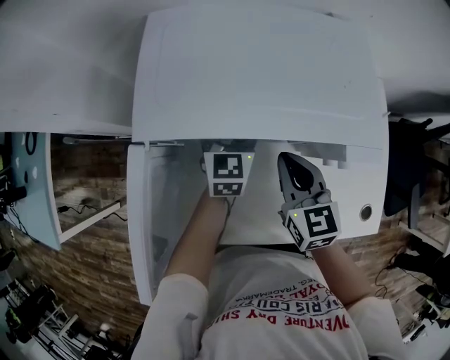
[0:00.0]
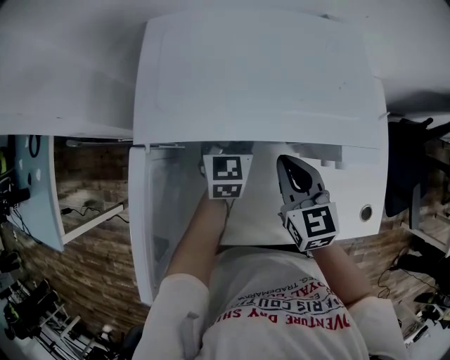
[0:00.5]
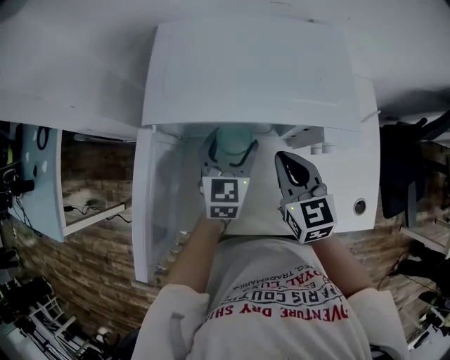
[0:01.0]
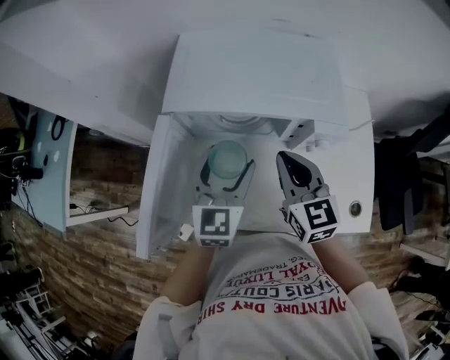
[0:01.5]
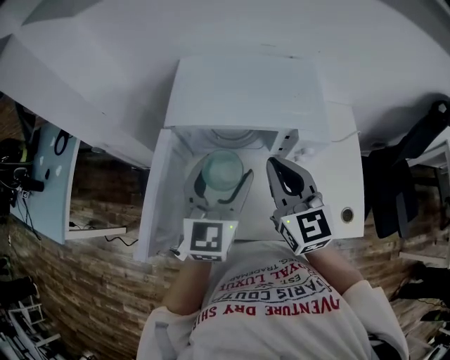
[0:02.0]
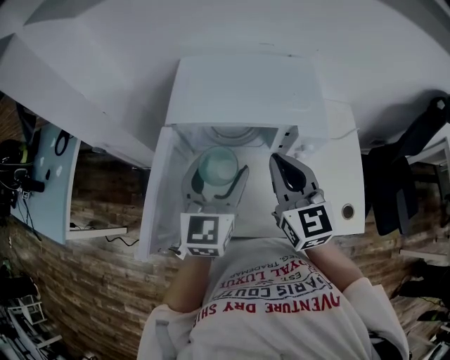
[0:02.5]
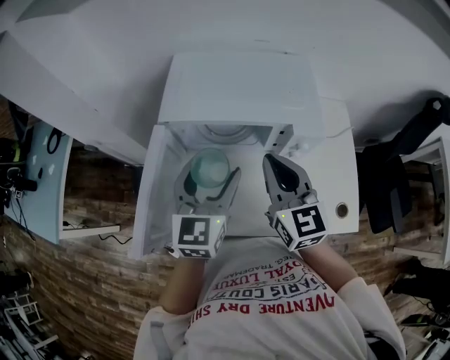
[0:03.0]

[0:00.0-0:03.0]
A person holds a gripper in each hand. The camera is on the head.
0:00.0 to 0:01.5: The right gripper travels upward and backward by about 10 cm. The left gripper shifts approximately 20 cm backward and upward.
0:01.5 to 0:03.0: The two grippers go about 5 cm upward.

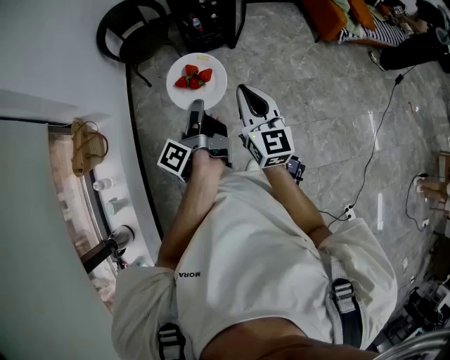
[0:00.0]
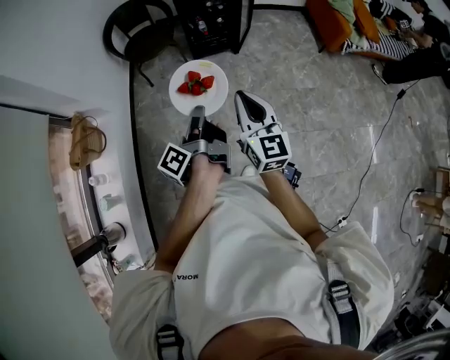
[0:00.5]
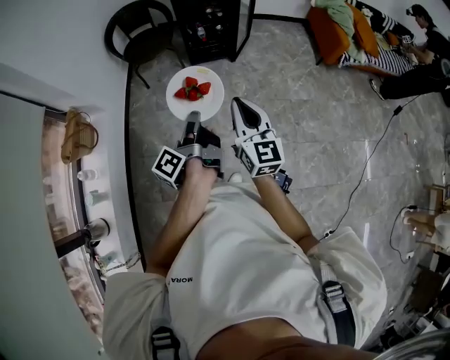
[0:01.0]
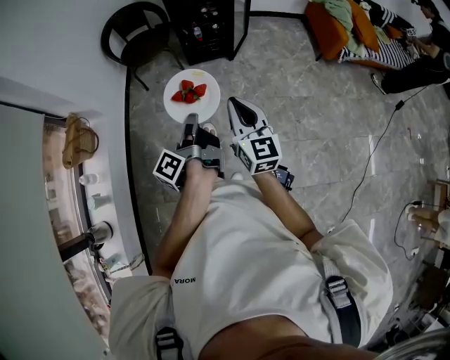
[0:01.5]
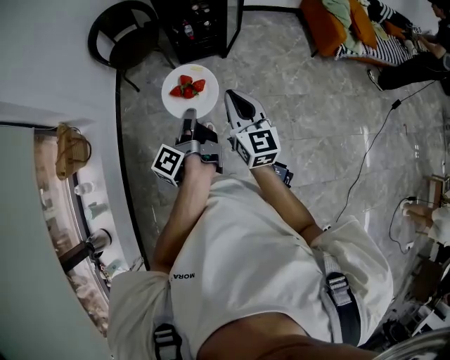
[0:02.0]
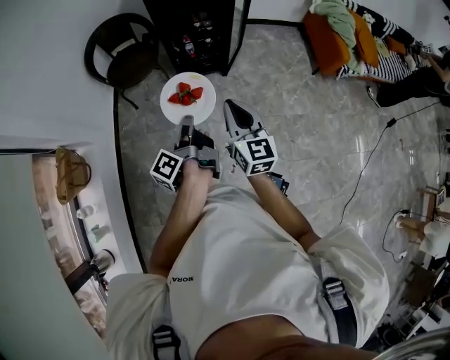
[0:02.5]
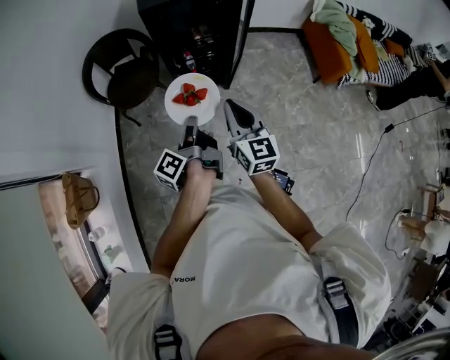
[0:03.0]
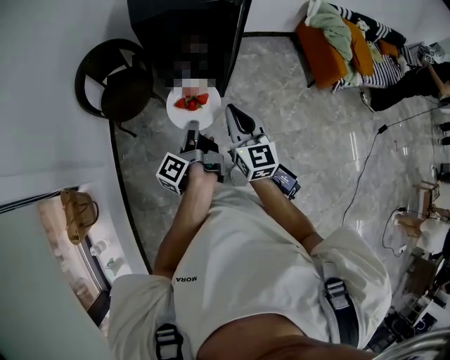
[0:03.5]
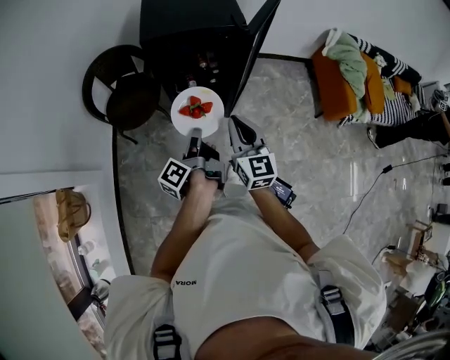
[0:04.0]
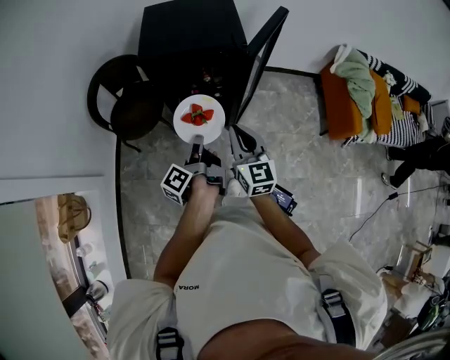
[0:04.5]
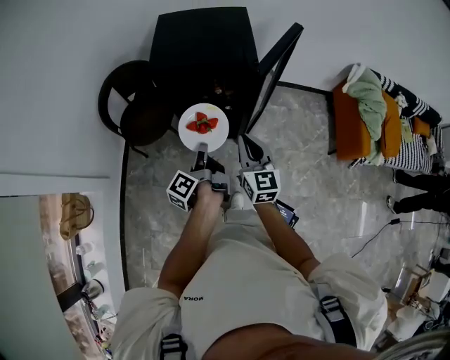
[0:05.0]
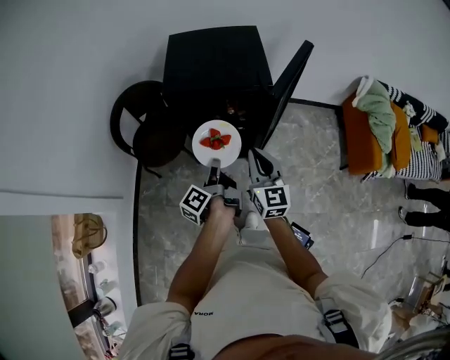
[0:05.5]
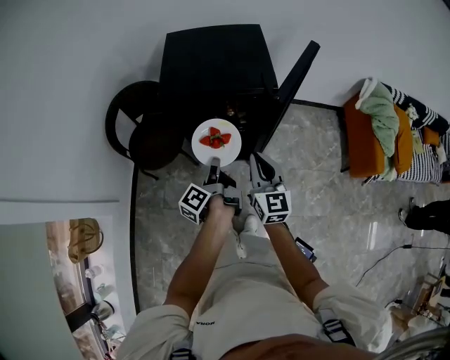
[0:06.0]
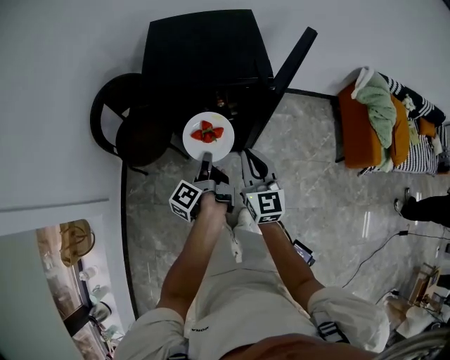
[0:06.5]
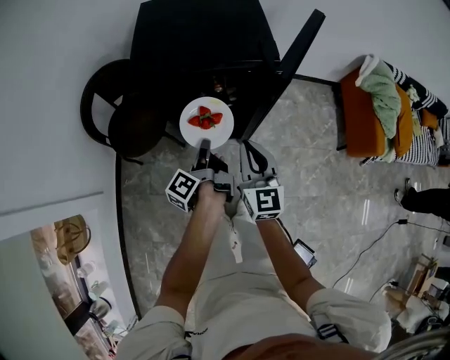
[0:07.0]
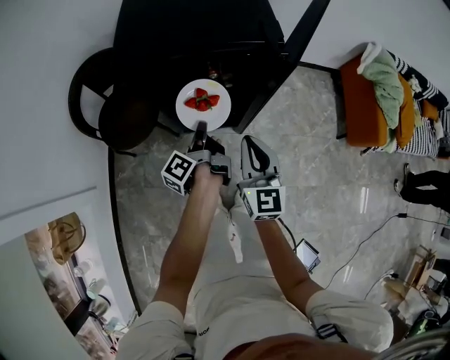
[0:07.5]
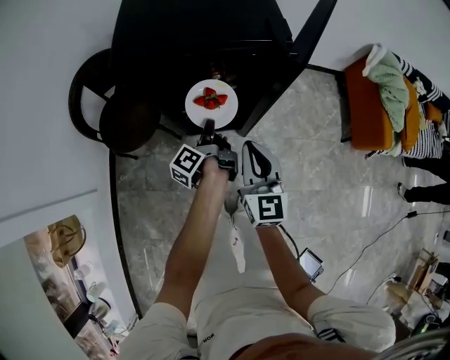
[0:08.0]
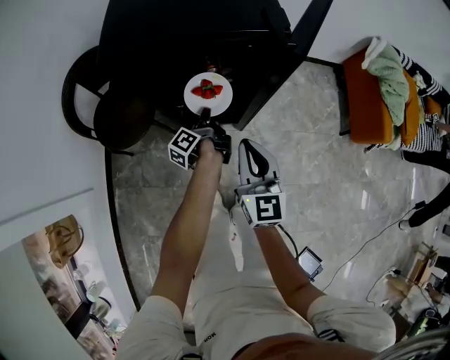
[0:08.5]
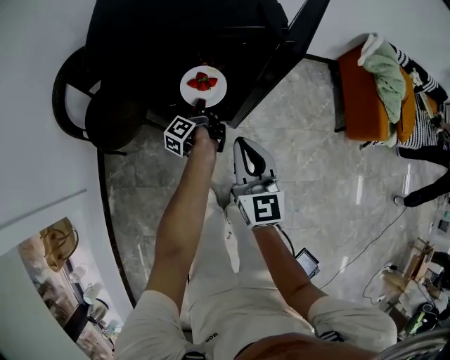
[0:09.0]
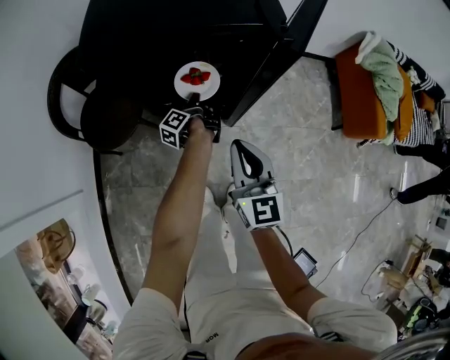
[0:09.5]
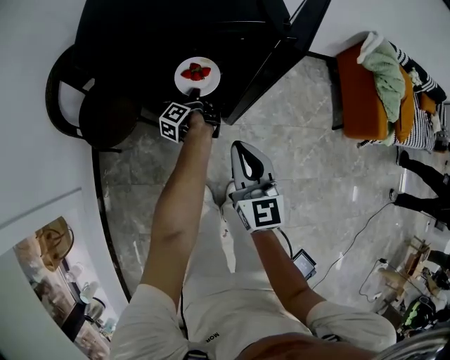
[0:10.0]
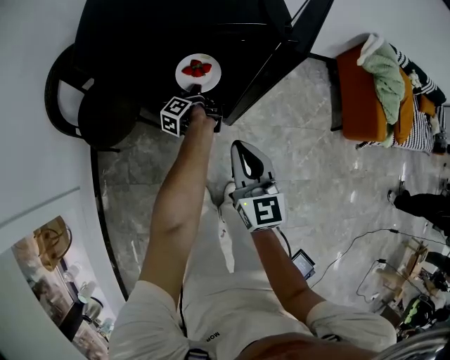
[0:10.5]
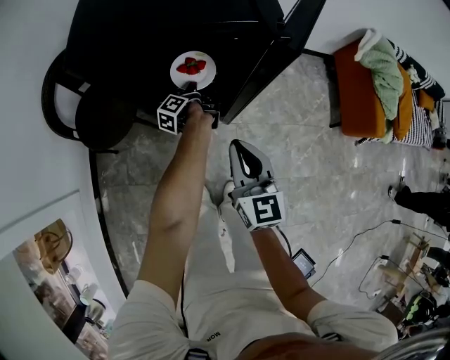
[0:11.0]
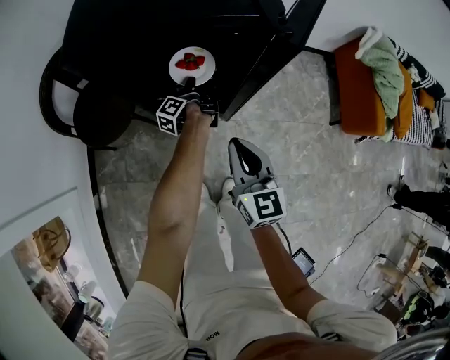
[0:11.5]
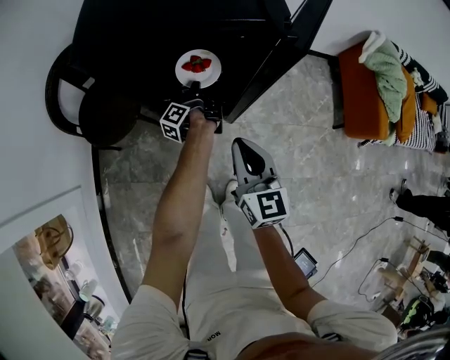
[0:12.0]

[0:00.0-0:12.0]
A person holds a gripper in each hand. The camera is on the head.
0:00.0 to 0:02.0: The right gripper changes place by roughly 15 cm.
0:02.0 to 0:04.0: The right gripper ends up approximately 40 cm from where it was.
0:04.0 to 0:06.0: The right gripper changes place by approximately 15 cm.
0:06.0 to 0:08.0: The right gripper is displaced downward by approximately 10 cm.

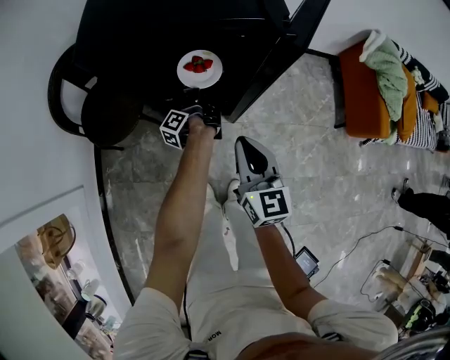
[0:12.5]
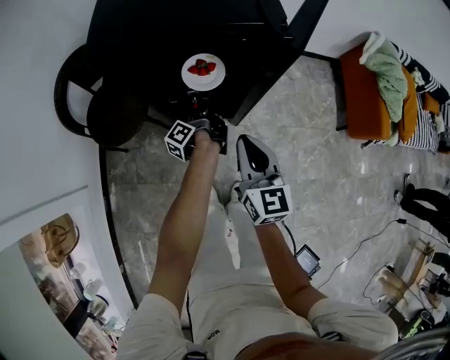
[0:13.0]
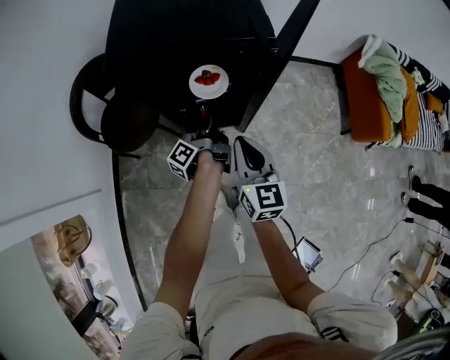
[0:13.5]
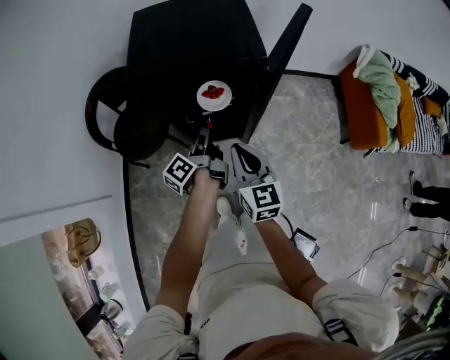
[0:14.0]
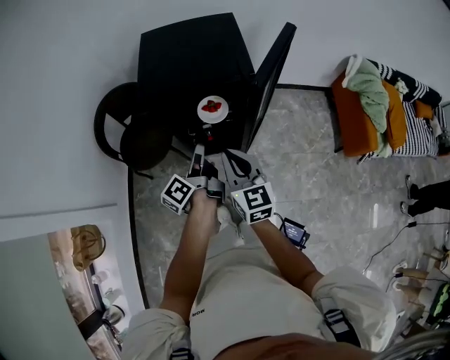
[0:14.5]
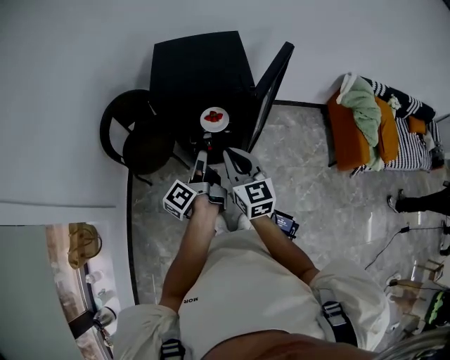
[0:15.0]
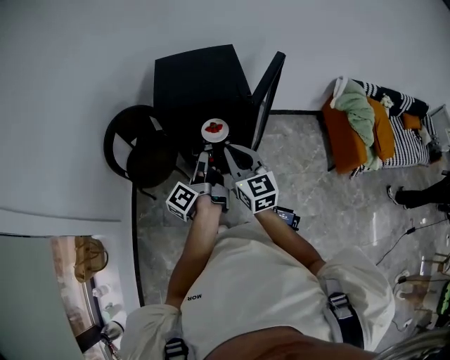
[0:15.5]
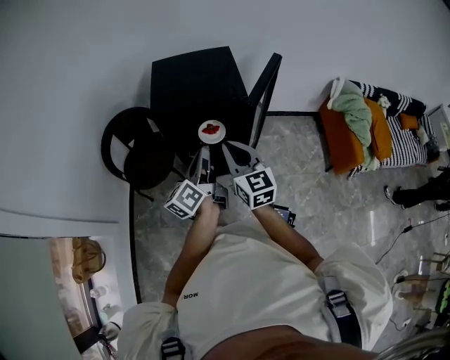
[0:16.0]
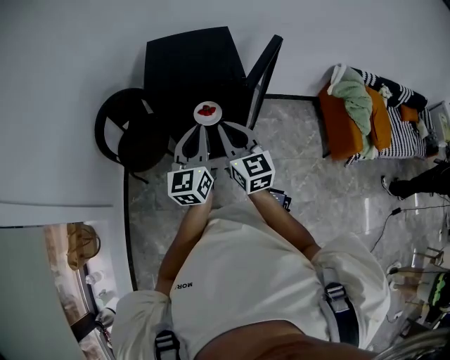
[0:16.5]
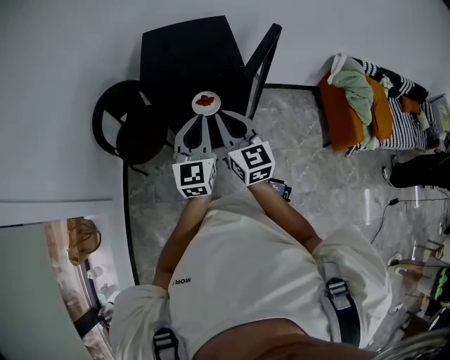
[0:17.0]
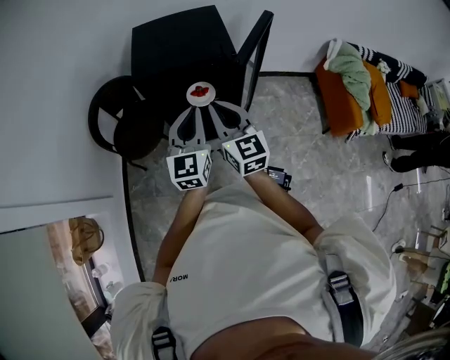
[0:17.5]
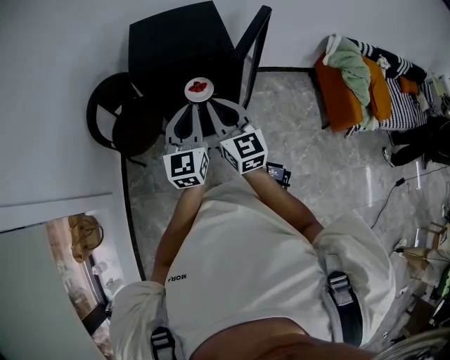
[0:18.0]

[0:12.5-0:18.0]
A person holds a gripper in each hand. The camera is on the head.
0:12.5 to 0:14.5: The right gripper goes roughly 15 cm upward.
0:14.5 to 0:16.0: The right gripper shifts some 10 cm upward.

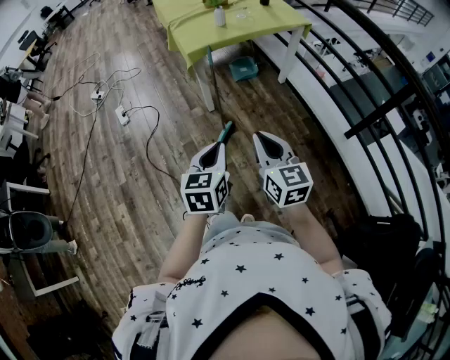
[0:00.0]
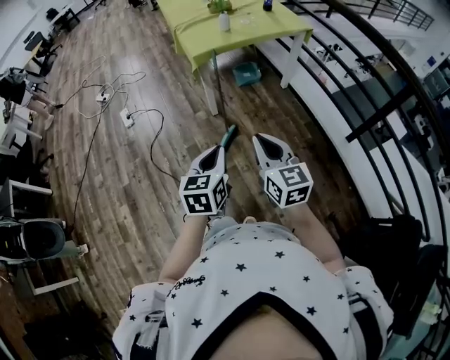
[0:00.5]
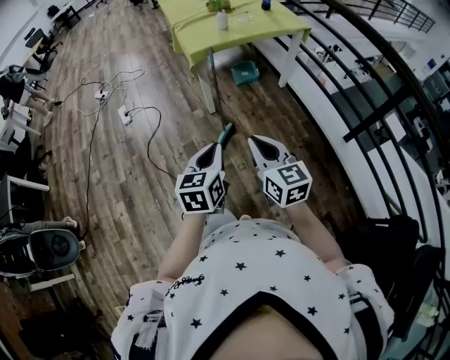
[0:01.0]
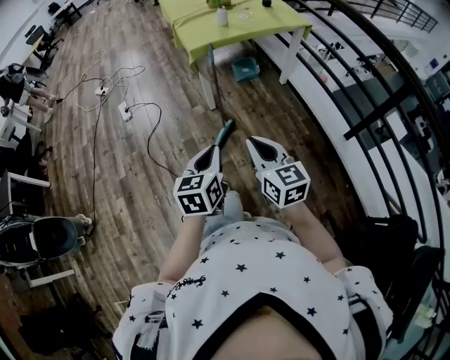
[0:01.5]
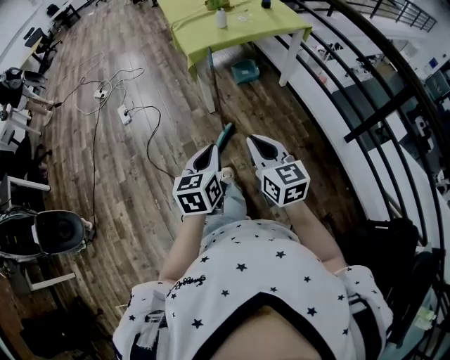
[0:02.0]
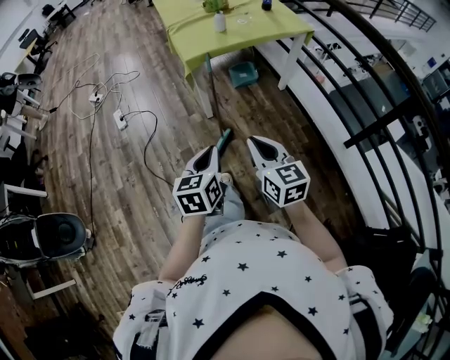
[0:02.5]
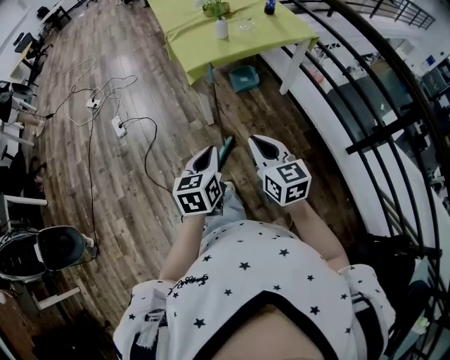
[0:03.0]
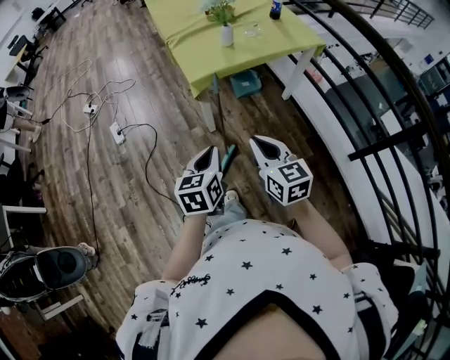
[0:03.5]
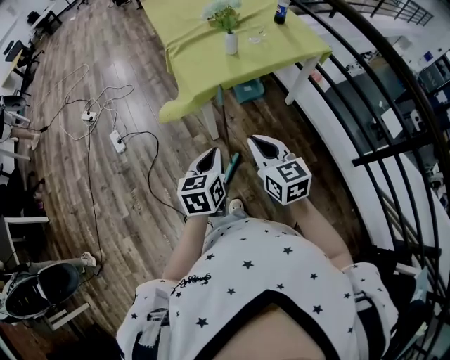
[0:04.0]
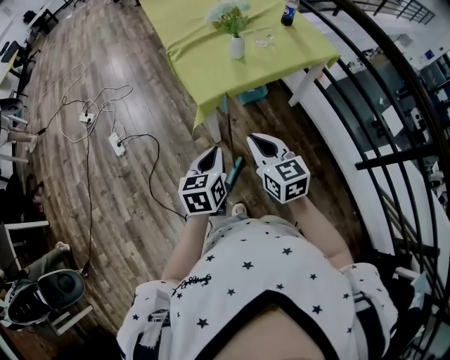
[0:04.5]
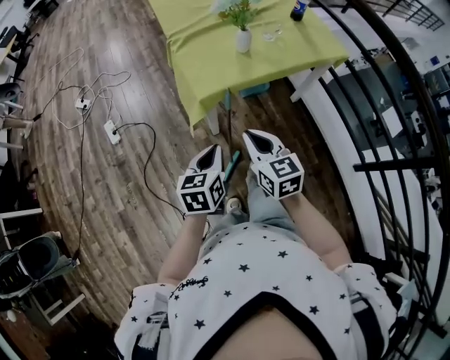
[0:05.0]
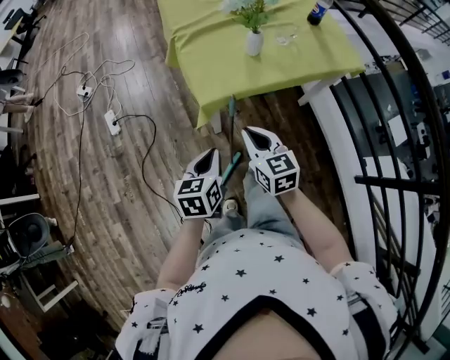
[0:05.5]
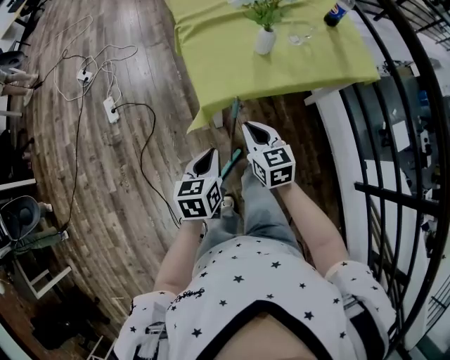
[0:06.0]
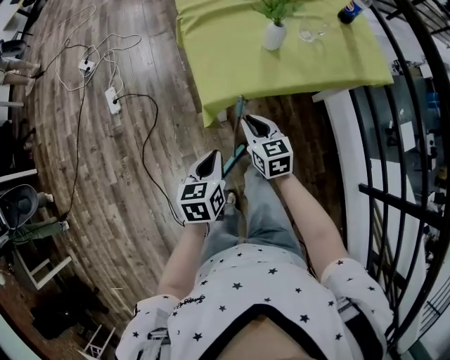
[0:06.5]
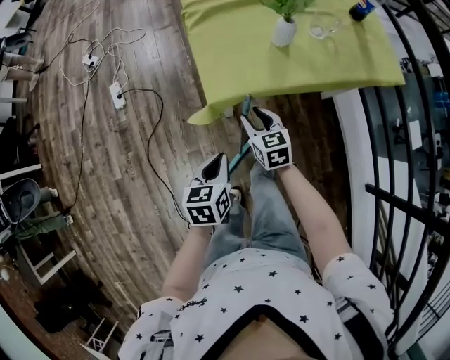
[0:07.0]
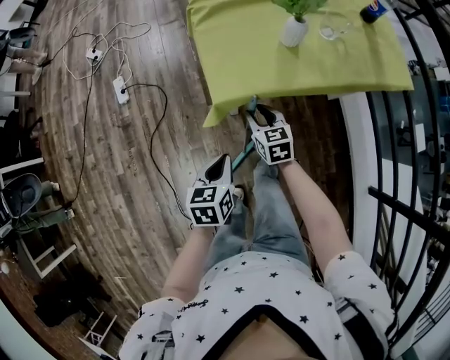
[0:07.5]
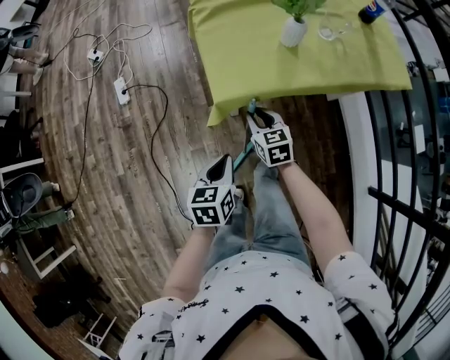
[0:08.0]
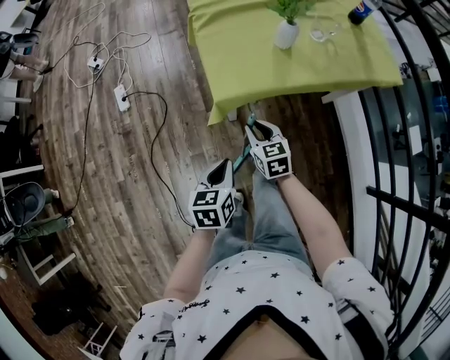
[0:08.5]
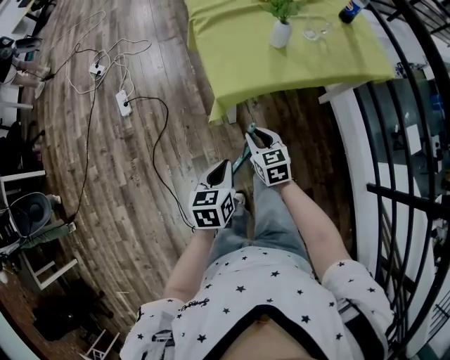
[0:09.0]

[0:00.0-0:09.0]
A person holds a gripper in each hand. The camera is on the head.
0:00.0 to 0:02.0: The grippers make only small movements.
0:02.0 to 0:04.5: Both grippers move forward, roughly 40 cm.
0:04.5 to 0:07.0: The left gripper goes some 15 cm downward and forward. Meanwhile the right gripper goes approximately 30 cm downward and forward, and opens.
0:07.0 to 0:09.0: The left gripper shifts approximately 5 cm backward, while the right gripper goes approximately 10 cm backward.
